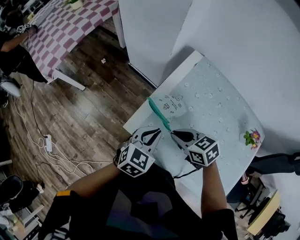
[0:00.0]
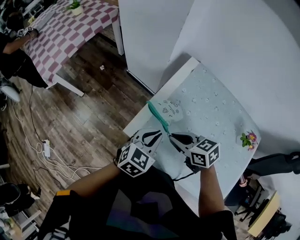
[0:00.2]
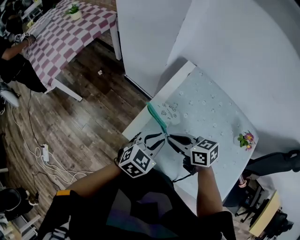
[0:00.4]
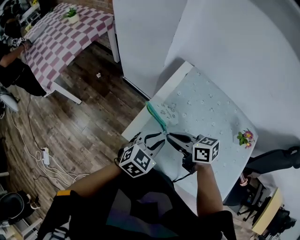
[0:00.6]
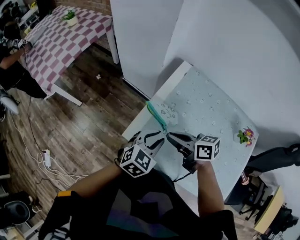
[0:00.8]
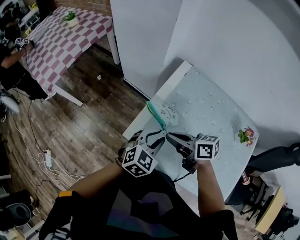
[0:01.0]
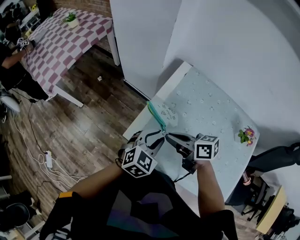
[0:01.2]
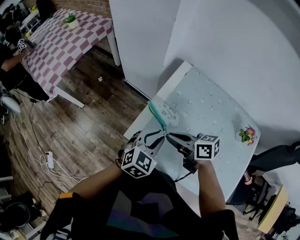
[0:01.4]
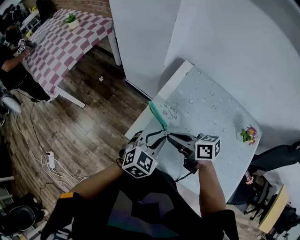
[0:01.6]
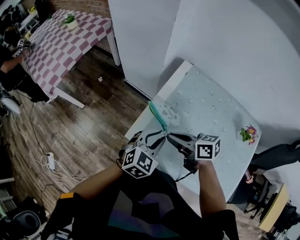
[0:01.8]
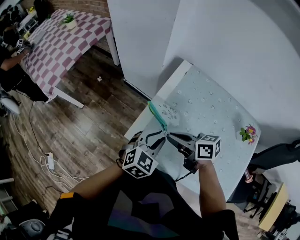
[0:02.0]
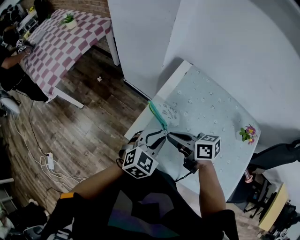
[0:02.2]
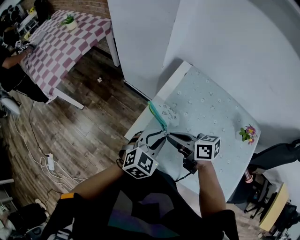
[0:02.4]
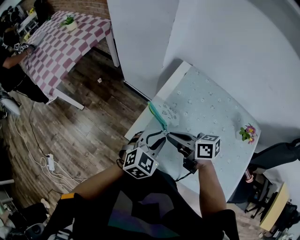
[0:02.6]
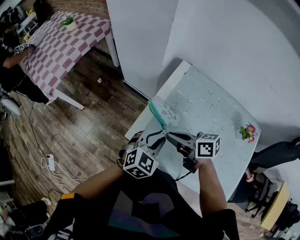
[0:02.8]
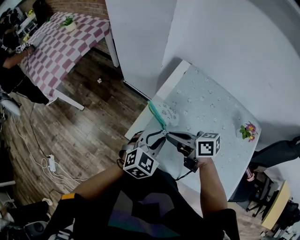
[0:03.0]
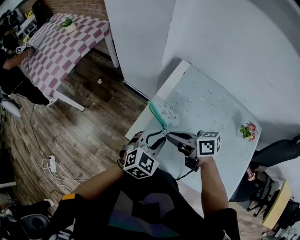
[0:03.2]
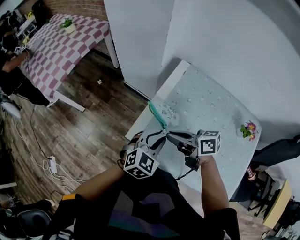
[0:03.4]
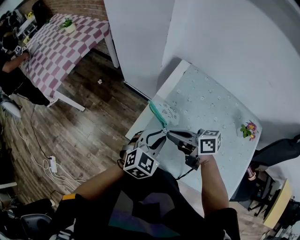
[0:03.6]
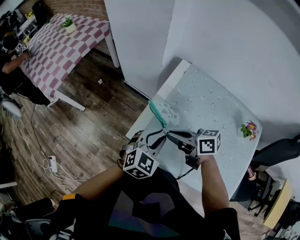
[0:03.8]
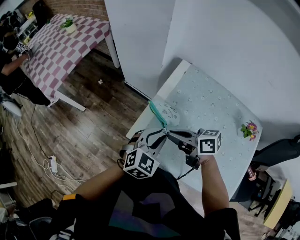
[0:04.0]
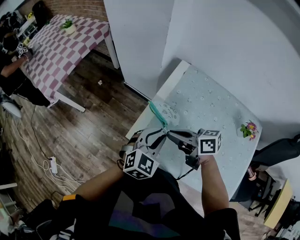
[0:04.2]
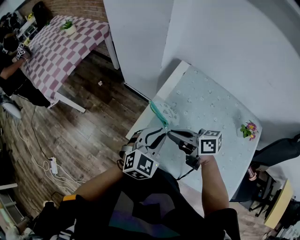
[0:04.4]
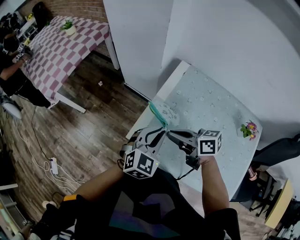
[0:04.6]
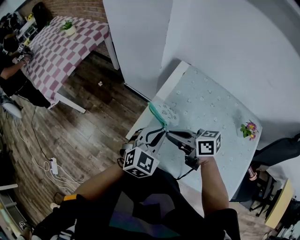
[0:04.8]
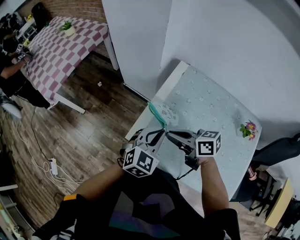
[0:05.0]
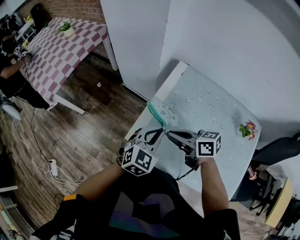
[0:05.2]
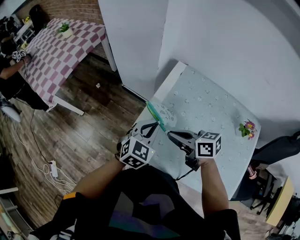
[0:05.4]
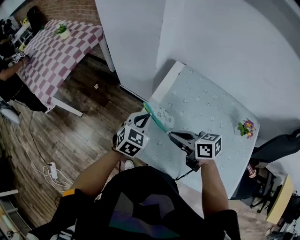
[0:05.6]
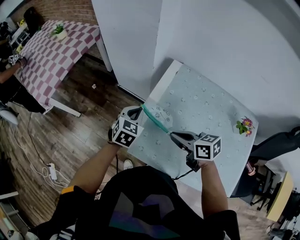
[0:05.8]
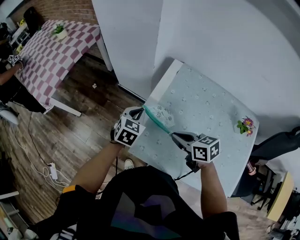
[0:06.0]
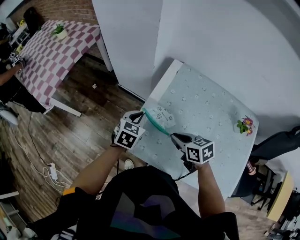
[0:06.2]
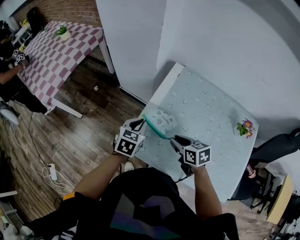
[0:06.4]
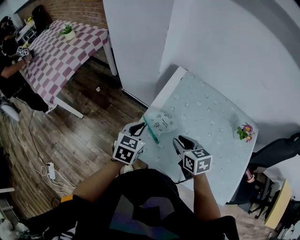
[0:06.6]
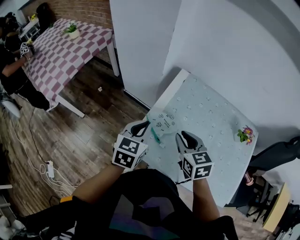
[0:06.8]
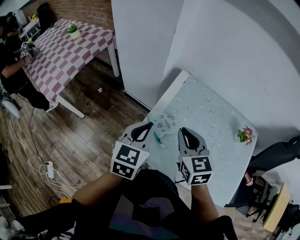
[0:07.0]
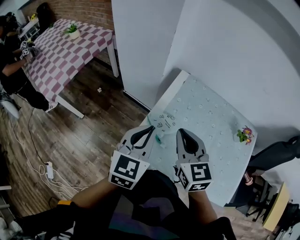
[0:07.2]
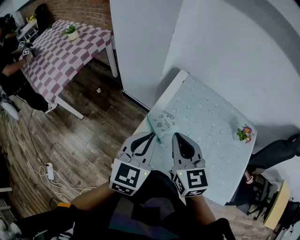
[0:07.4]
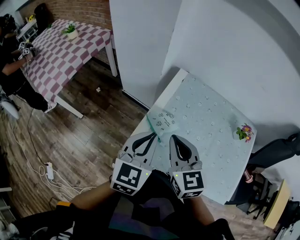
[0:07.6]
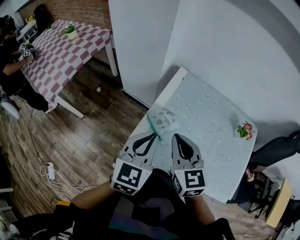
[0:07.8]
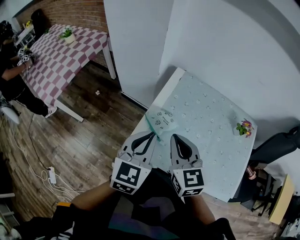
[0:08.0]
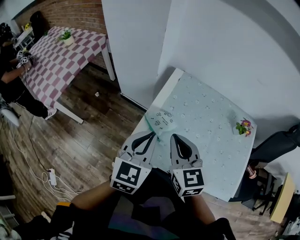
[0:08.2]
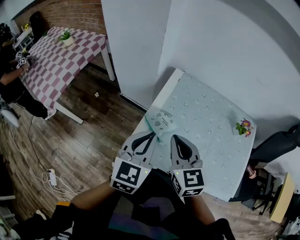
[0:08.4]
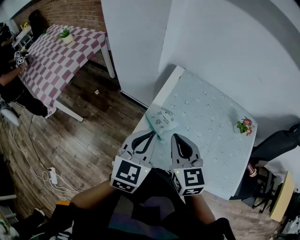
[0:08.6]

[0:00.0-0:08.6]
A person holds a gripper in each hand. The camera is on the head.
0:00.0 to 0:01.4: The right gripper shifts some 5 cm upward, and swivels about 30 degrees. Meanwhile the left gripper opens.
0:01.4 to 0:02.8: Both grippers stay about where they are.
0:02.8 to 0:04.4: The grippers stay close to where they were, moving slightly.
0:04.4 to 0:05.8: The left gripper moves forward and downward, approximately 15 cm.
0:05.8 to 0:07.2: The right gripper shifts about 15 cm upward, and swivels approximately 50 degrees. Meanwhile the left gripper goes some 20 cm upward and backward, and turns by about 20 degrees.
0:07.2 to 0:08.6: There are only small adjustments of the grippers.

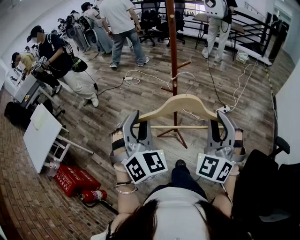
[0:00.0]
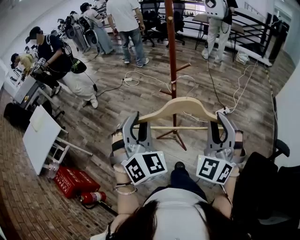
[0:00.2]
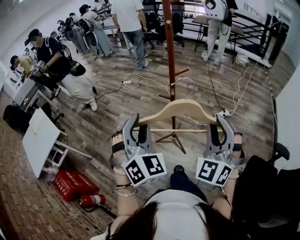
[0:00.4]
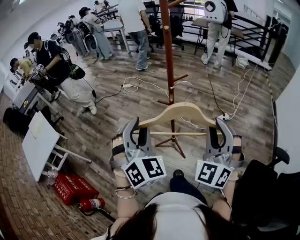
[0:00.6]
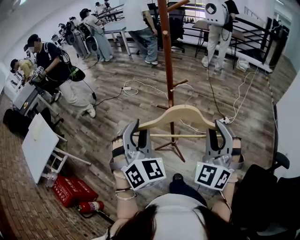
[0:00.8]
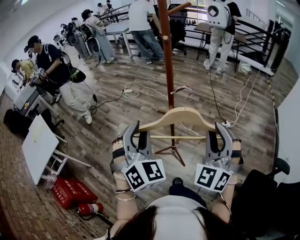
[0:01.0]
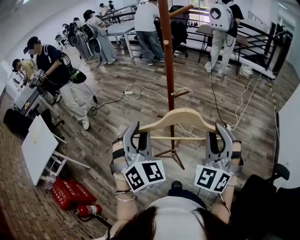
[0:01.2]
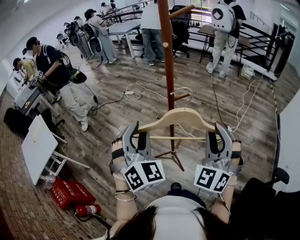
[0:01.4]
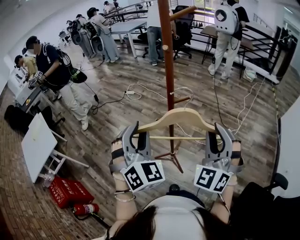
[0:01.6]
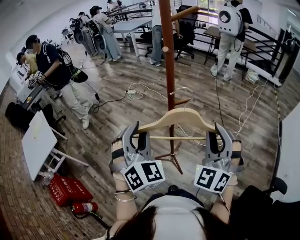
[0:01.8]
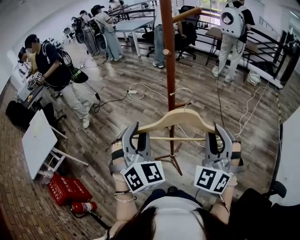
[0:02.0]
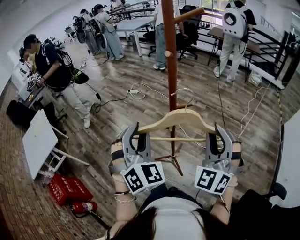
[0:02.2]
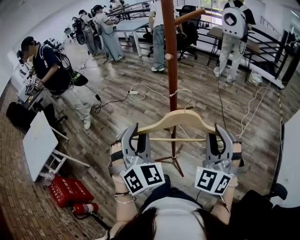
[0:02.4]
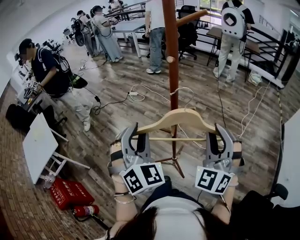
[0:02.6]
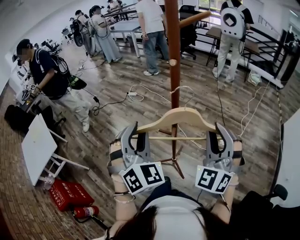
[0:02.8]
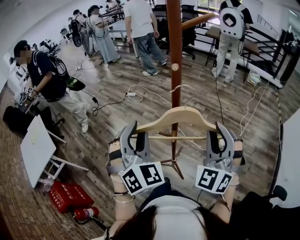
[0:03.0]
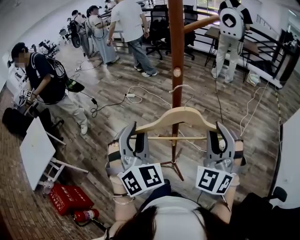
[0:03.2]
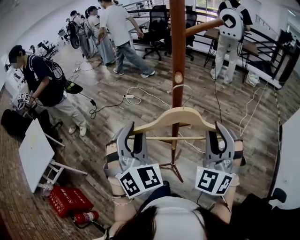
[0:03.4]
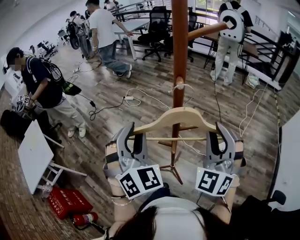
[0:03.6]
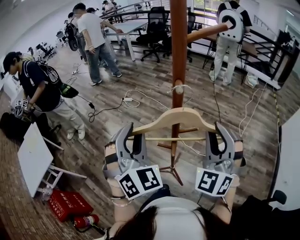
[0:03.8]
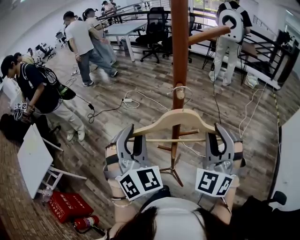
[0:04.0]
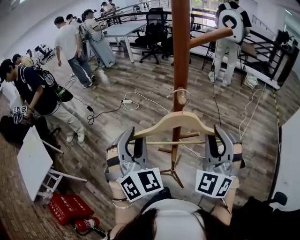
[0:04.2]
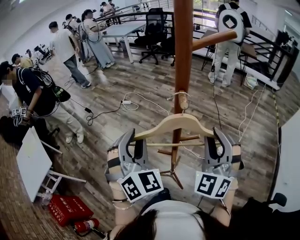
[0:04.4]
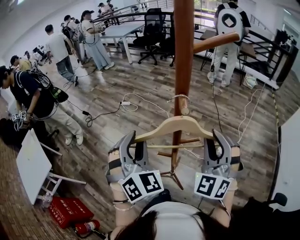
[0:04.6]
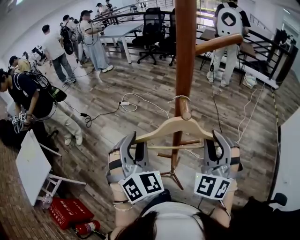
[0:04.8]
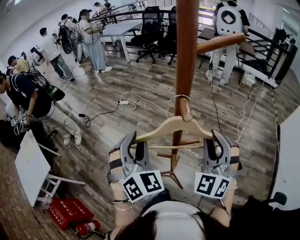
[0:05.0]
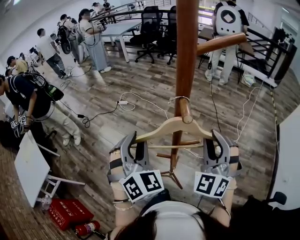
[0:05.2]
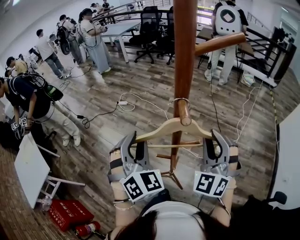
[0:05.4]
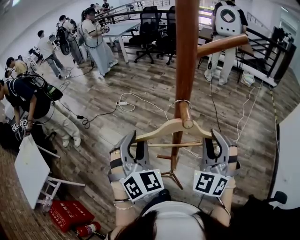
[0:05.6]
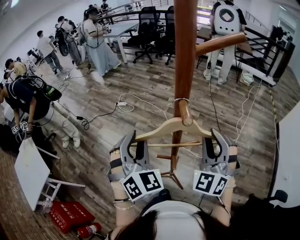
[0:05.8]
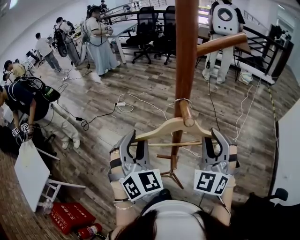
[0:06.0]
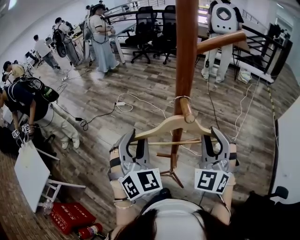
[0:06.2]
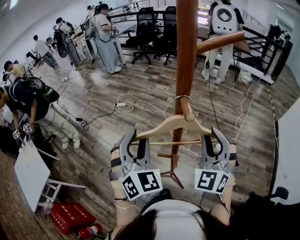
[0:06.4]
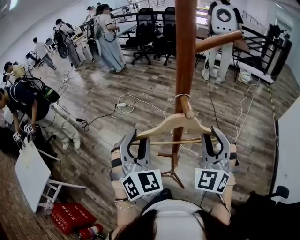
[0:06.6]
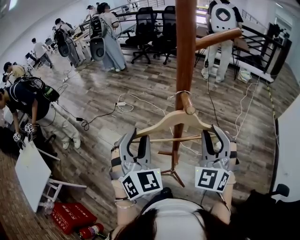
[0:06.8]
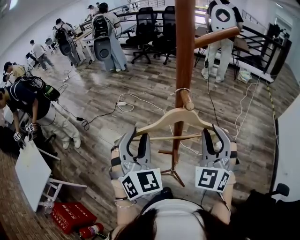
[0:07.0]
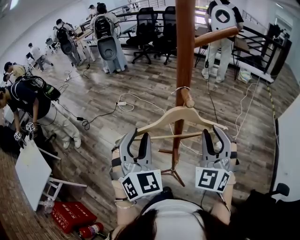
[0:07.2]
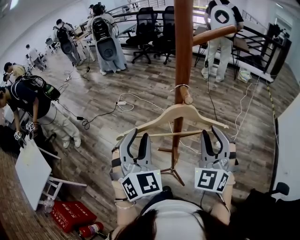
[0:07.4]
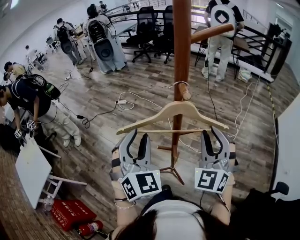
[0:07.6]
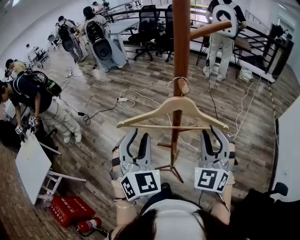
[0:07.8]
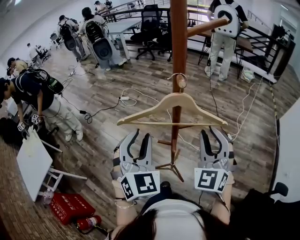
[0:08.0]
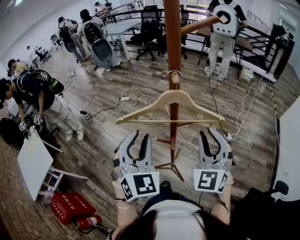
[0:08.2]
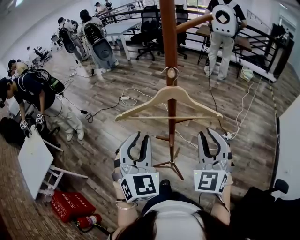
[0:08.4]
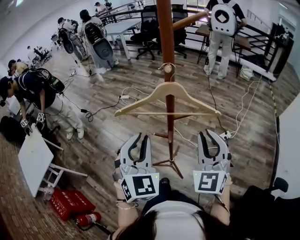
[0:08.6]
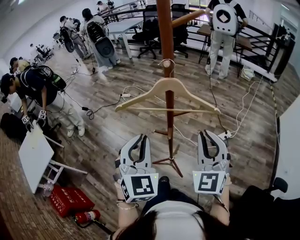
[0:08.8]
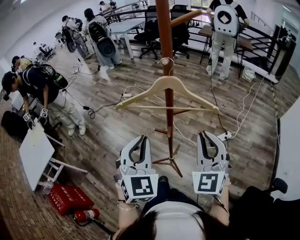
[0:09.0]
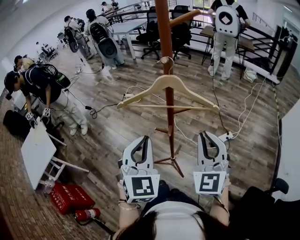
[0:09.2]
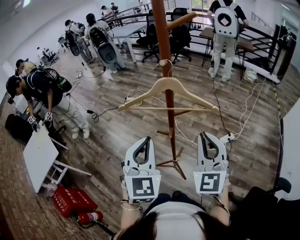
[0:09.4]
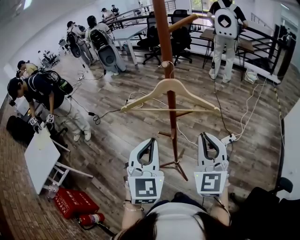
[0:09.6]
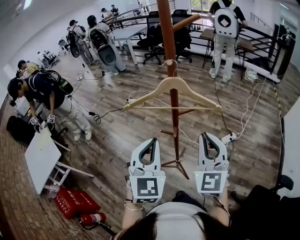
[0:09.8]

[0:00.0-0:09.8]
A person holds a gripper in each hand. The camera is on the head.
0:00.0 to 0:01.4: The two grippers go approximately 15 cm forward.
0:01.4 to 0:02.8: Both grippers travel together forward, approximately 10 cm.
0:02.8 to 0:04.2: Both grippers travel together forward, some 10 cm.
0:04.2 to 0:05.6: The left gripper moves about 5 cm. The right gripper moves approximately 5 cm.
0:05.6 to 0:07.0: There are only small adjustments of the grippers.
0:07.0 to 0:08.4: Both grippers move backward, roughly 10 cm.
0:08.4 to 0:09.8: Both grippers travel together backward, approximately 5 cm. The left gripper closes its fingers.

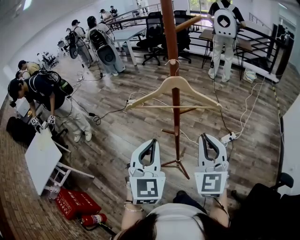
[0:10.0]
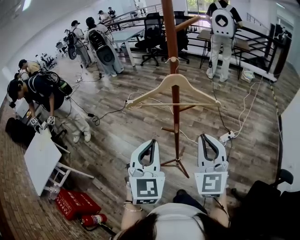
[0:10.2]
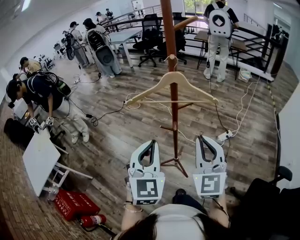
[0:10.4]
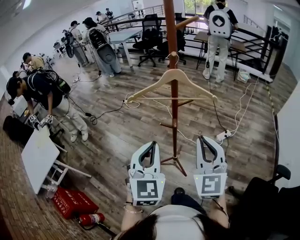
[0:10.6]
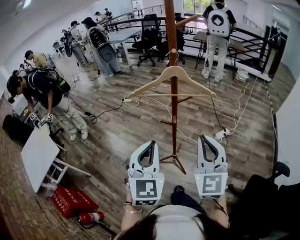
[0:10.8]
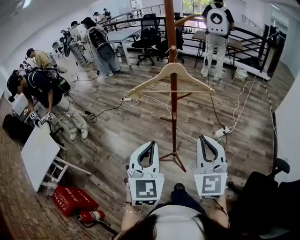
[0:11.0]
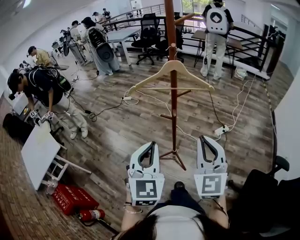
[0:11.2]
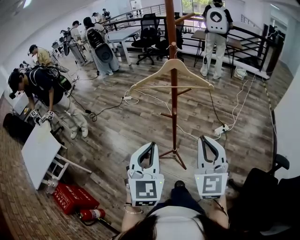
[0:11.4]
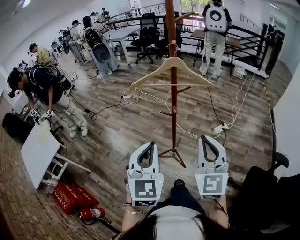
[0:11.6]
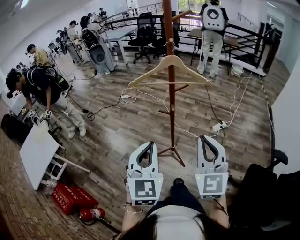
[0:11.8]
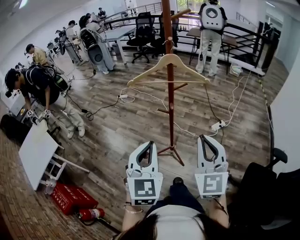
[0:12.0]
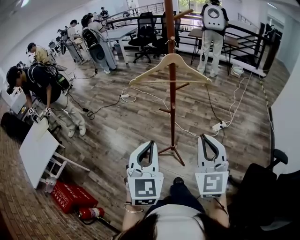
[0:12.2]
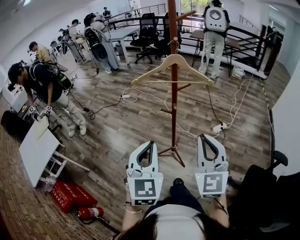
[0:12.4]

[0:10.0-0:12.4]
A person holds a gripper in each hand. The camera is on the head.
0:10.0 to 0:11.2: Both grippers move backward, approximately 10 cm.
0:11.2 to 0:12.4: The grippers move only a little.

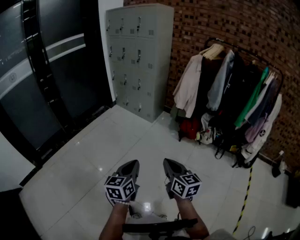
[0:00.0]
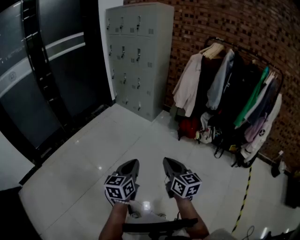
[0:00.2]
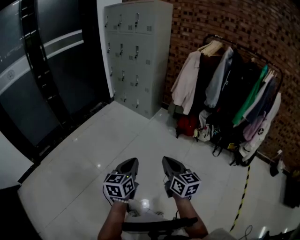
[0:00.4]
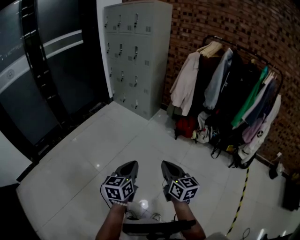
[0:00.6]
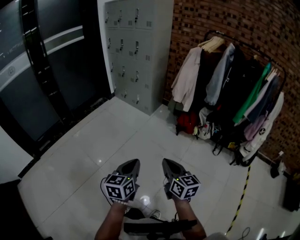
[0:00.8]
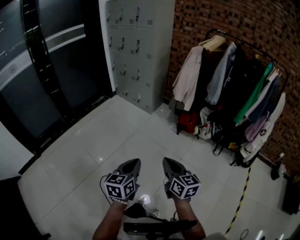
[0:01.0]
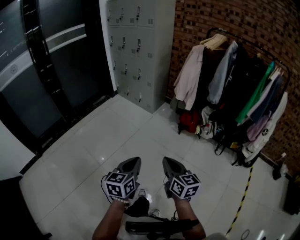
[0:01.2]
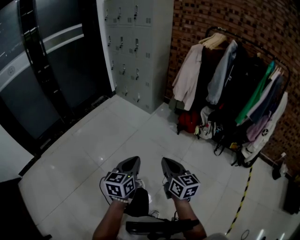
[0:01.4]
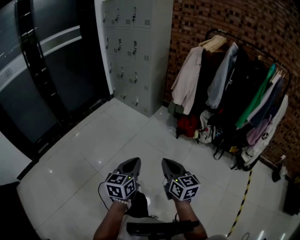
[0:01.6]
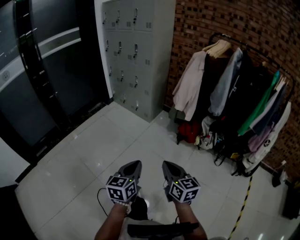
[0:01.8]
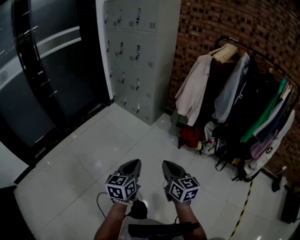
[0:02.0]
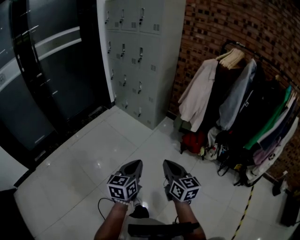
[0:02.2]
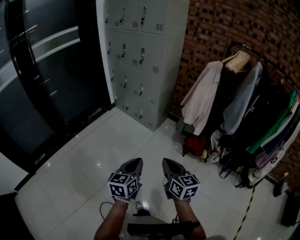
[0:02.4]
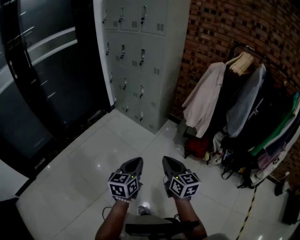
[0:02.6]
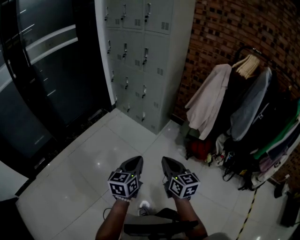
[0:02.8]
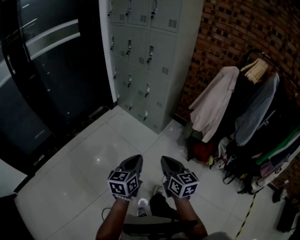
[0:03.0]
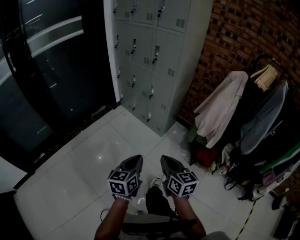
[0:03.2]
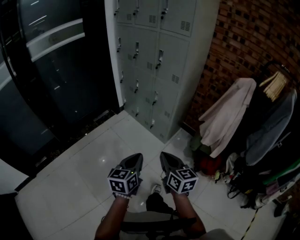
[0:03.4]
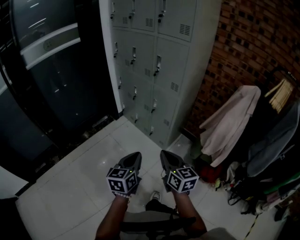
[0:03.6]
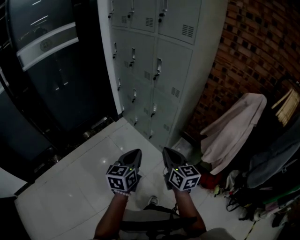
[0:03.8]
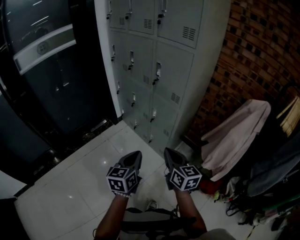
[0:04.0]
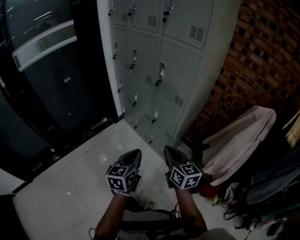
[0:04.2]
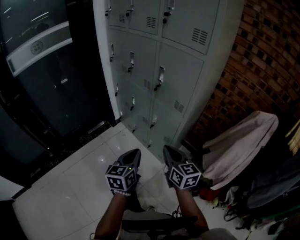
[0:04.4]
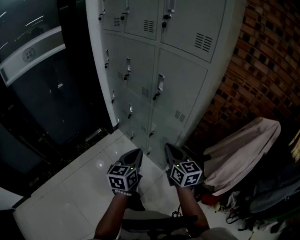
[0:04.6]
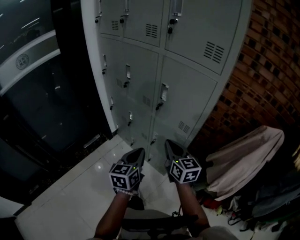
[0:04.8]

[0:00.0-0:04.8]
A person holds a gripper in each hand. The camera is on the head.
0:00.0 to 0:01.6: The two grippers go approximately 10 cm to the right and forward.
0:01.6 to 0:03.2: The pair of grippers is taken forward, about 50 cm.
0:03.2 to 0:04.8: The two grippers travel together, forward, some 60 cm.
